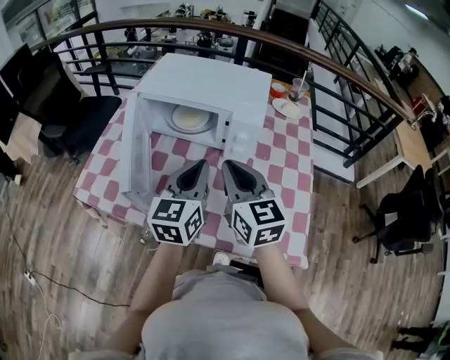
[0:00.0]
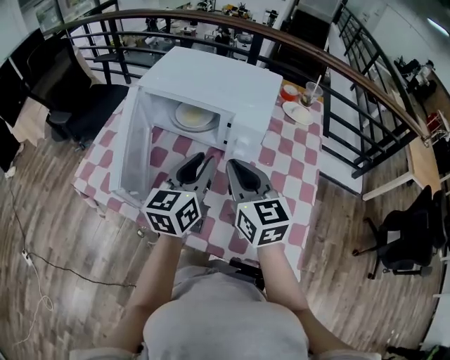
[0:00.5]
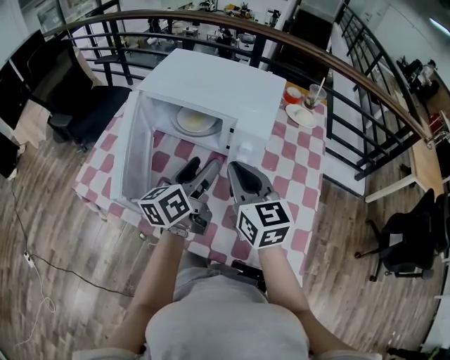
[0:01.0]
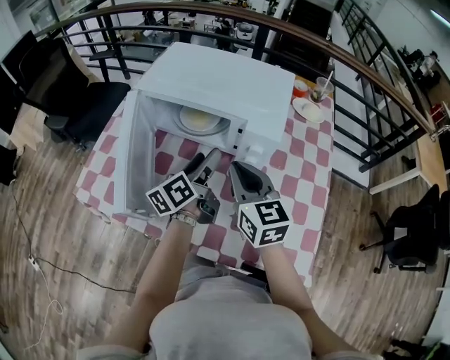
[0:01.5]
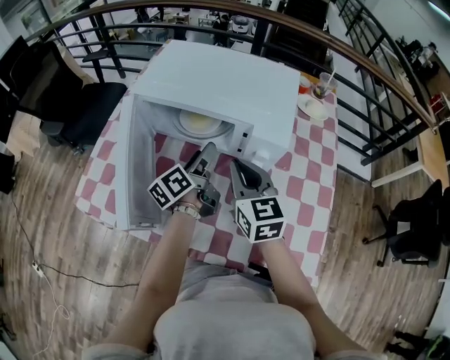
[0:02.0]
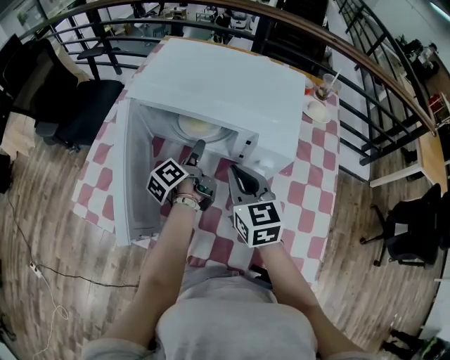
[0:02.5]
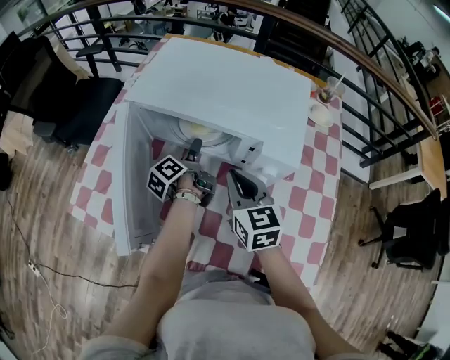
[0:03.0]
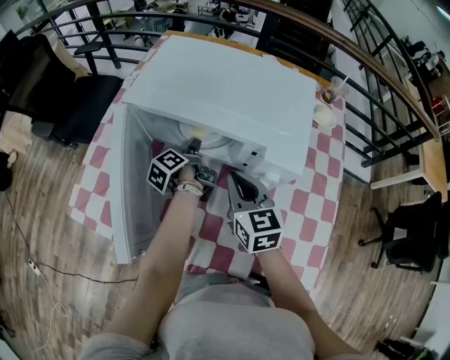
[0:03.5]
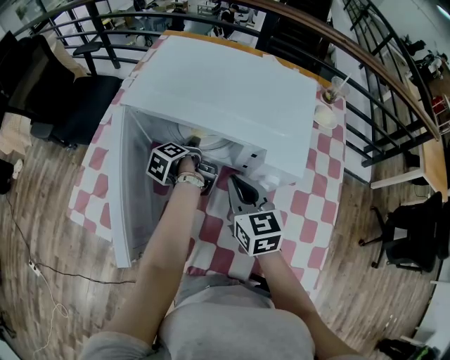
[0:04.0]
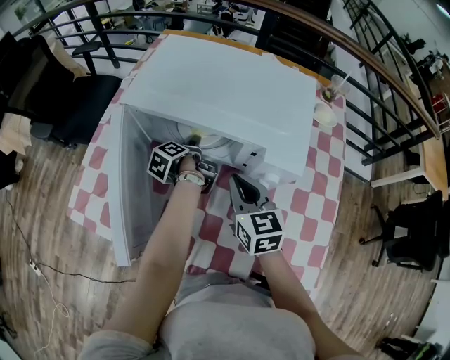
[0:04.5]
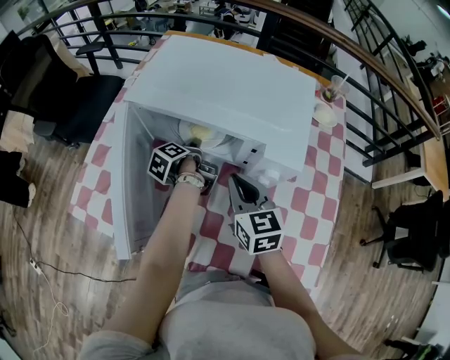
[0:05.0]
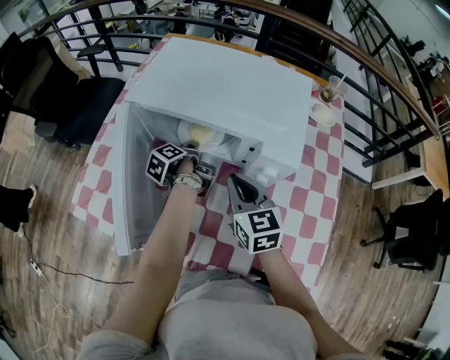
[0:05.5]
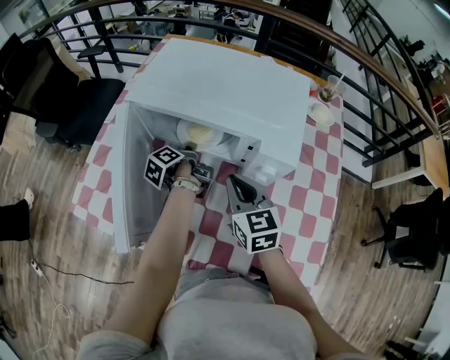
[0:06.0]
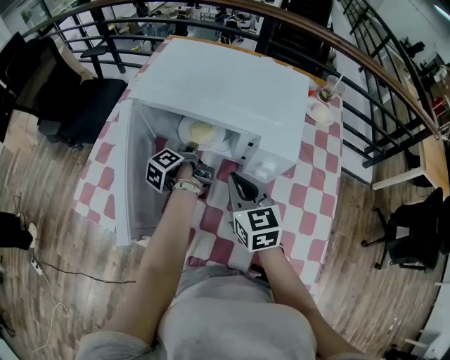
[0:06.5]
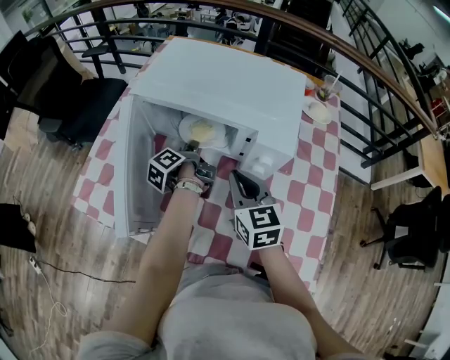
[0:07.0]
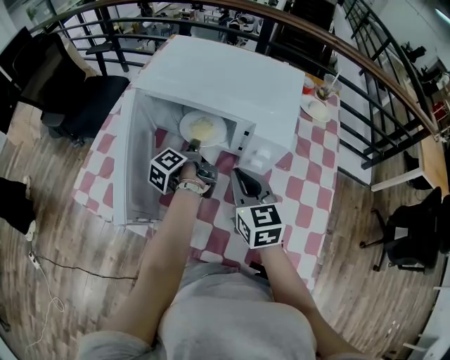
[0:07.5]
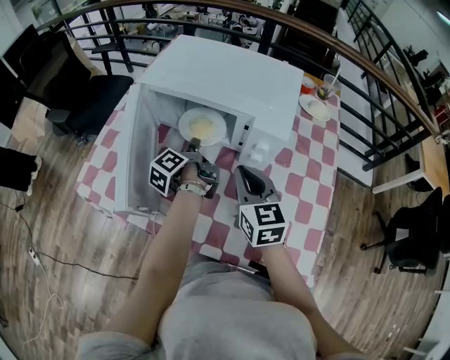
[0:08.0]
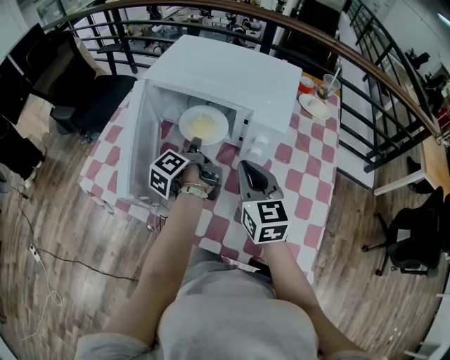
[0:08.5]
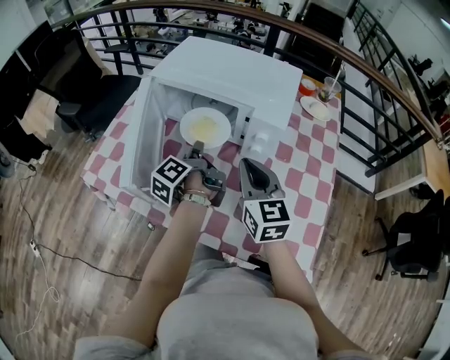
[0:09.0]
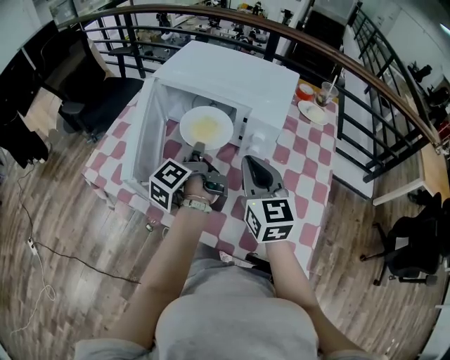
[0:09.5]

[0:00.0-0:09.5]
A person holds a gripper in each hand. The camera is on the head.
0:00.0 to 0:02.0: Both grippers travel together forward and downward, some 20 cm. The left gripper rotates around the line of its fingers by roughly 50 degrees, counterclockwise from behind, and opens up.
0:02.0 to 0:04.0: The left gripper travels downward and forward by some 15 cm, and tilts its fingers approximately 30 degrees downward, while the right gripper heads downward, covering roughly 5 cm.
0:04.0 to 0:05.5: The left gripper closes.
0:05.5 to 0:07.5: The left gripper changes place by roughly 5 cm.
0:07.5 to 0:09.5: The left gripper moves backward and upward, roughly 15 cm. Meanwhile the right gripper heads upward and backward, covering about 10 cm.

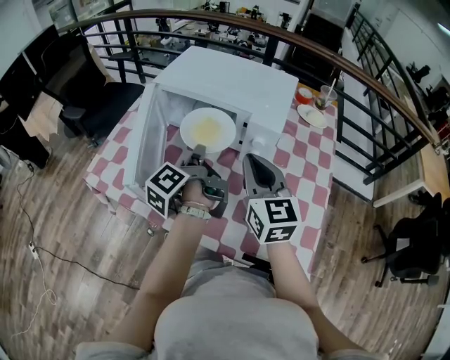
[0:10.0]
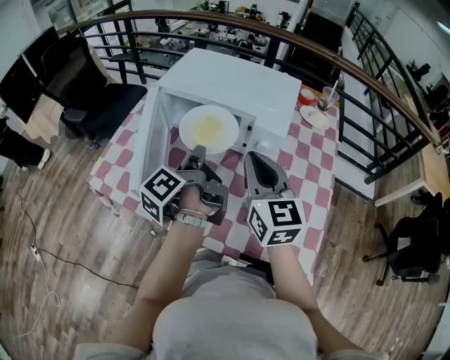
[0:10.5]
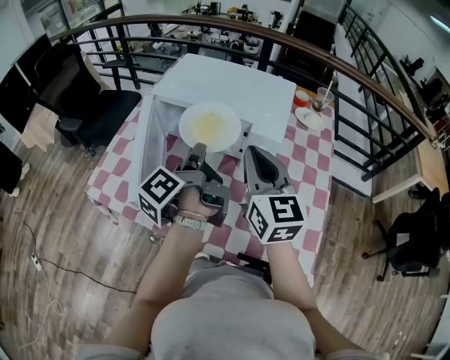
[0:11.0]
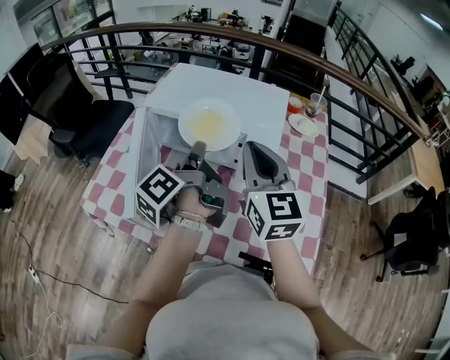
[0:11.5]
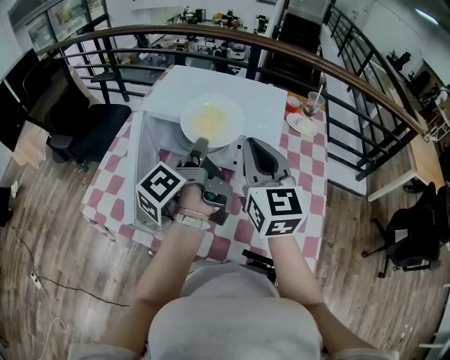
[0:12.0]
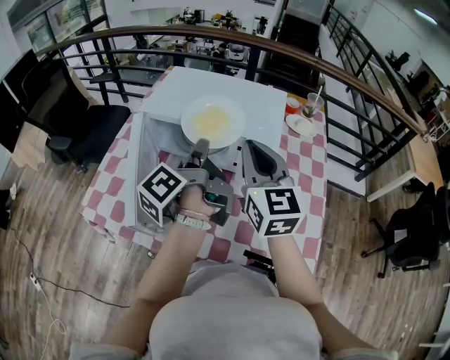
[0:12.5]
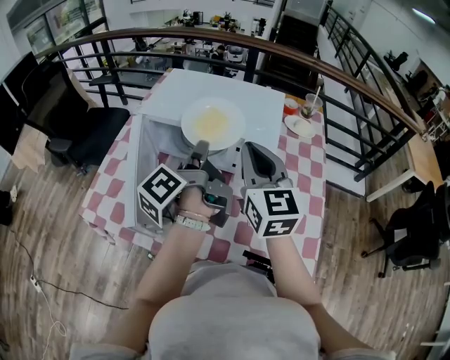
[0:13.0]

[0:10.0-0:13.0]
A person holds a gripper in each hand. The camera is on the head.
0:10.0 to 0:11.5: The right gripper heads upward and forward, covering about 10 cm; the left gripper moves upward, roughly 10 cm.
0:11.5 to 0:13.0: There are only small adjustments of the grippers.

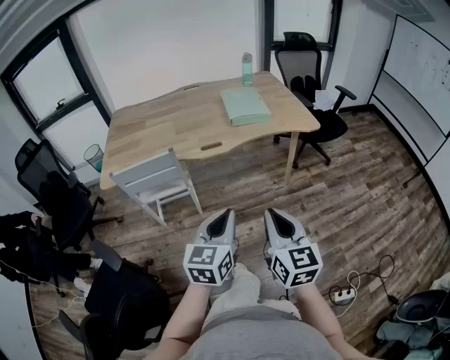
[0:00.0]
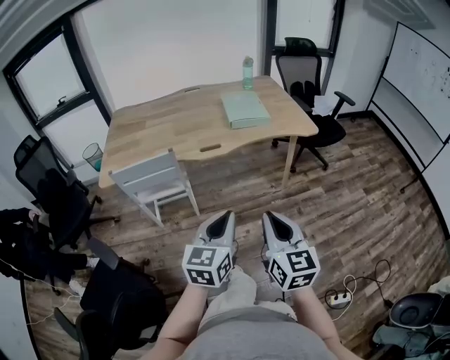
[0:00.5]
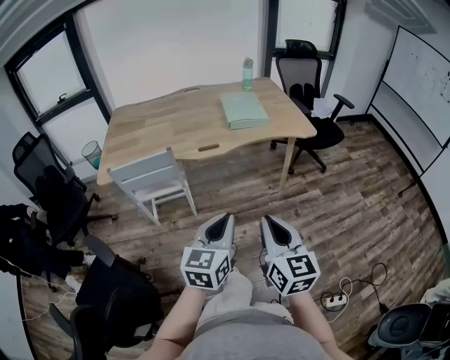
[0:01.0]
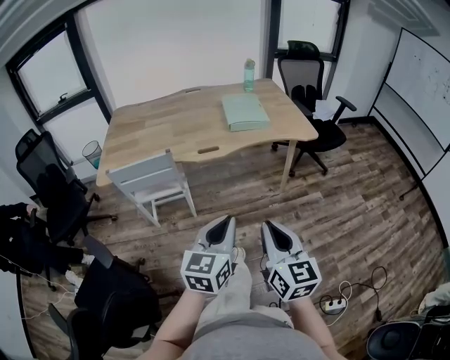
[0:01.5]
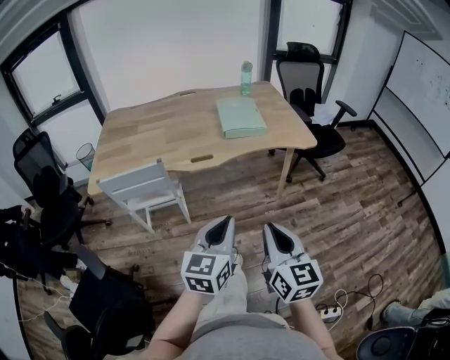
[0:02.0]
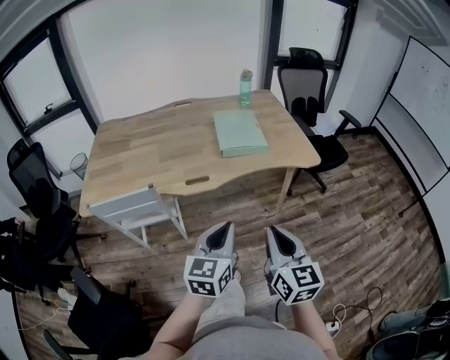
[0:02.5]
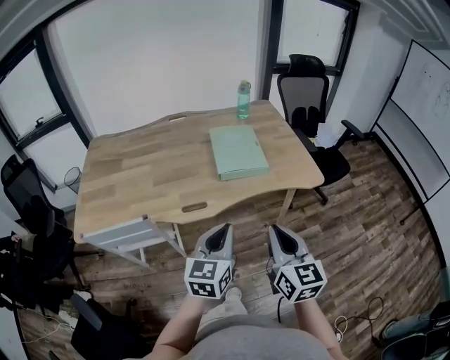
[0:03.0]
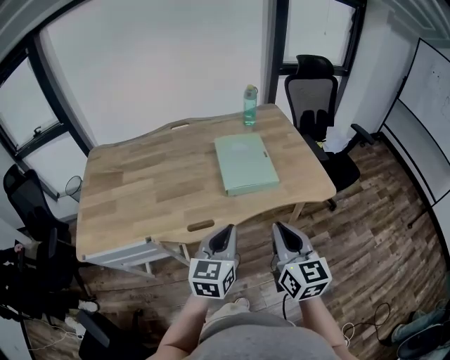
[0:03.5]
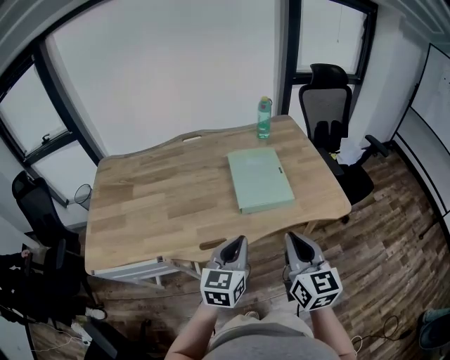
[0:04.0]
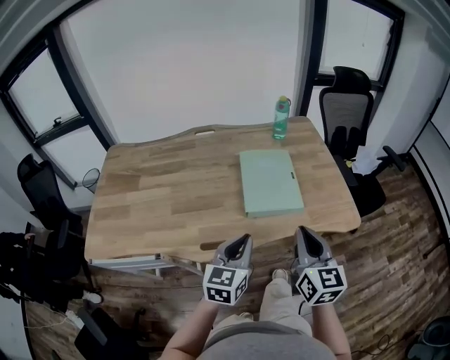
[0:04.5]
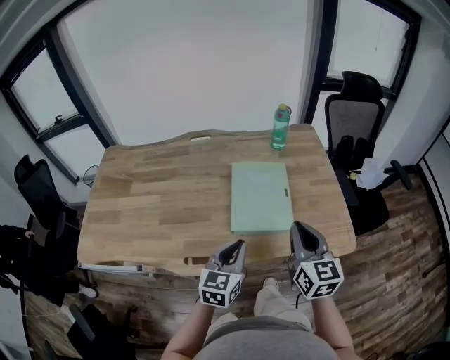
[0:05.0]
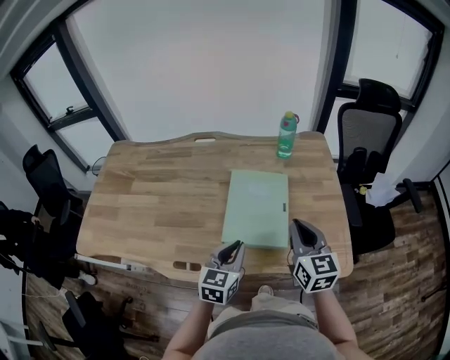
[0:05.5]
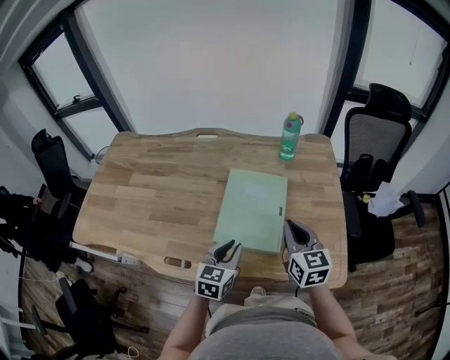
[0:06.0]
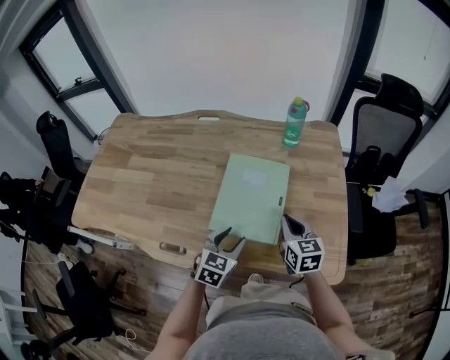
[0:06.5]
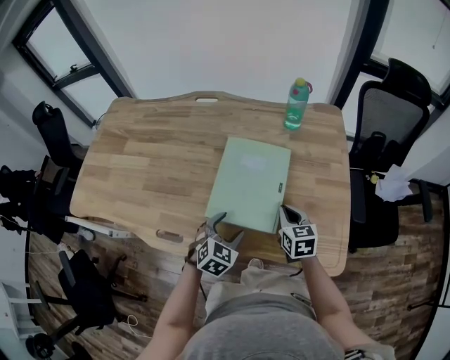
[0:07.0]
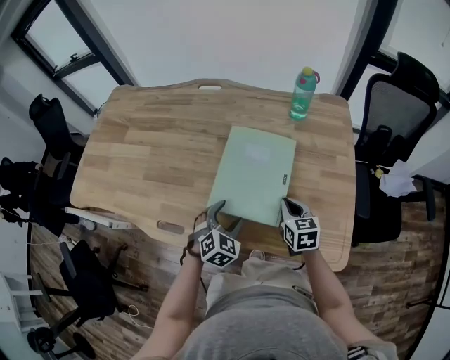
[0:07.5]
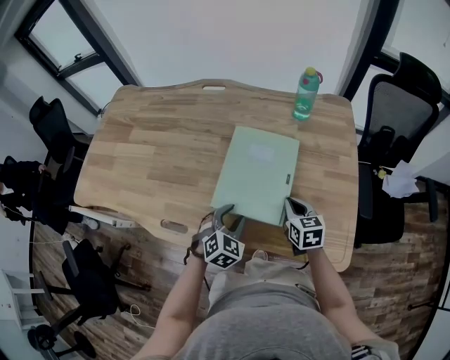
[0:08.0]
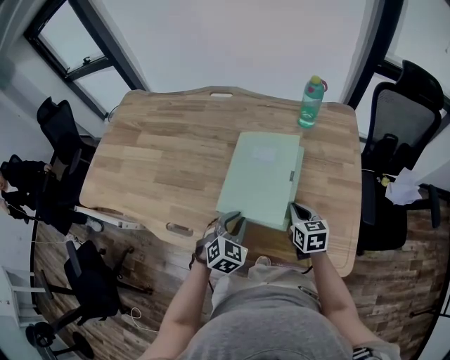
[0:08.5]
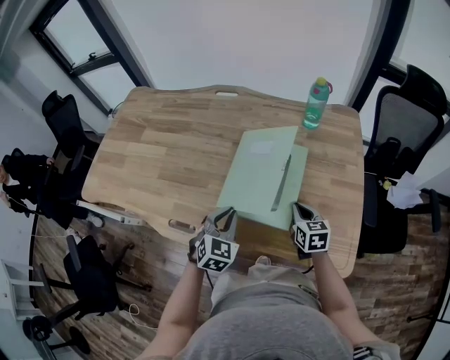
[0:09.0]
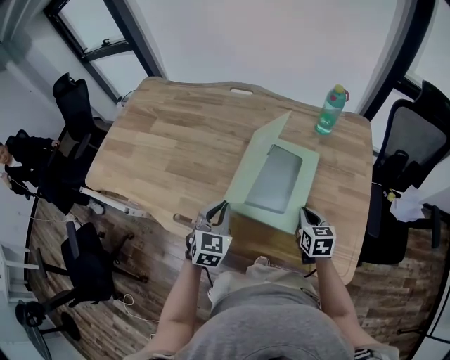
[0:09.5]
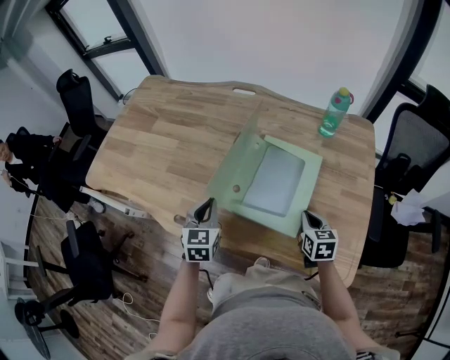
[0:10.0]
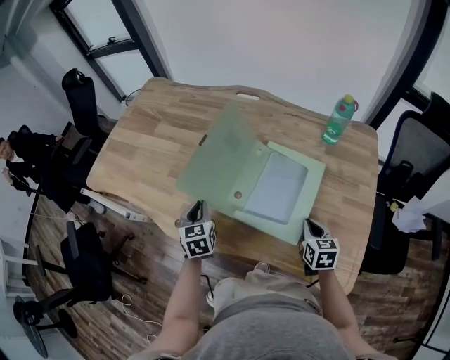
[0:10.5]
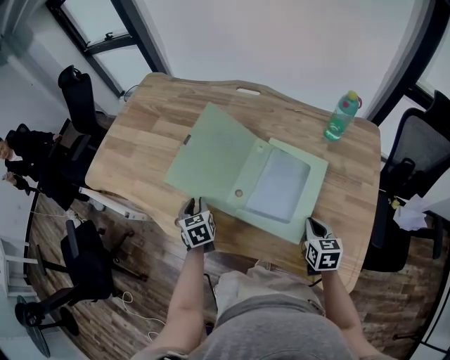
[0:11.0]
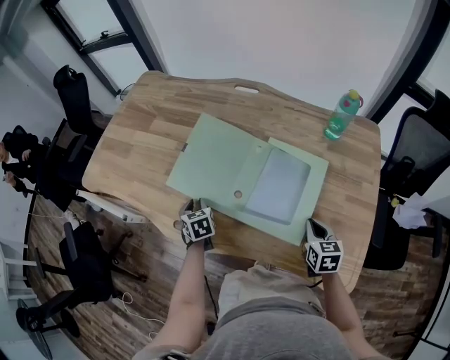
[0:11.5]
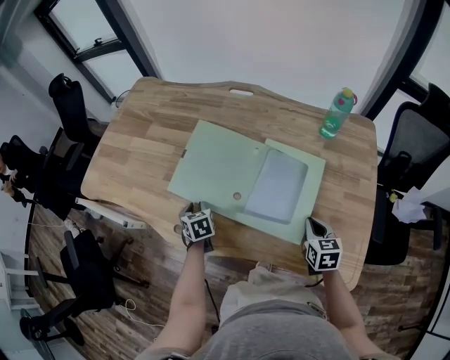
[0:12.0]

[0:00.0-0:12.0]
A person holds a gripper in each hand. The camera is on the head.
0:00.0 to 0:02.0: The left gripper changes place by roughly 5 cm. Meanwhile the right gripper changes place by some 5 cm.
0:02.0 to 0:04.0: The two grippers go approximately 40 cm forward.
0:04.0 to 0:06.0: The right gripper heads forward and to the right, covering about 35 cm, and swivels about 20 degrees. The left gripper moves forward, downward and to the right, roughly 25 cm.
0:06.0 to 0:08.0: The right gripper shifts approximately 15 cm downward, and changes its angle by some 20 degrees, while the left gripper shifts roughly 10 cm downward, rotates roughly 40 degrees, and opens.
0:08.0 to 0:10.0: The left gripper shifts some 15 cm to the left and upward, rotates approximately 40 degrees, and closes its fingers.
0:10.0 to 0:12.0: The left gripper shifts approximately 20 cm downward, to the left and forward, changes its angle by some 30 degrees, and opens its fingers.

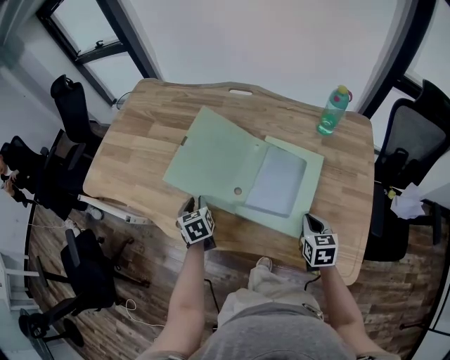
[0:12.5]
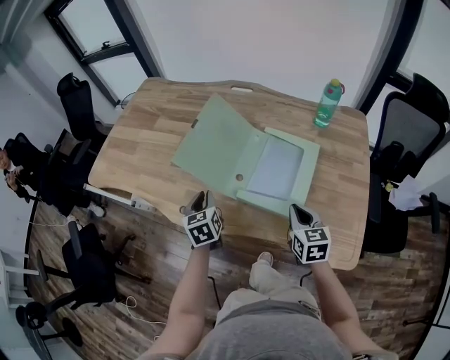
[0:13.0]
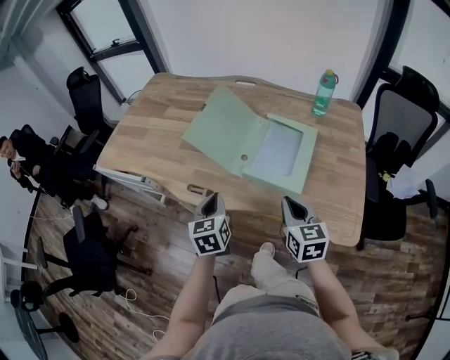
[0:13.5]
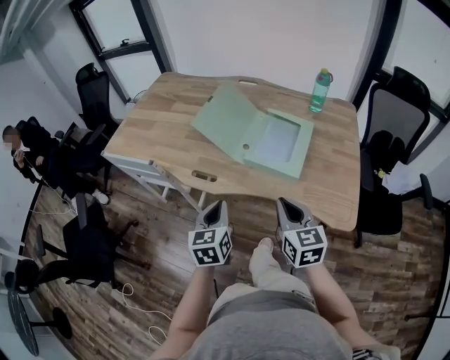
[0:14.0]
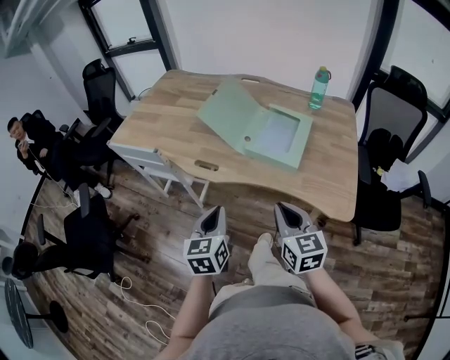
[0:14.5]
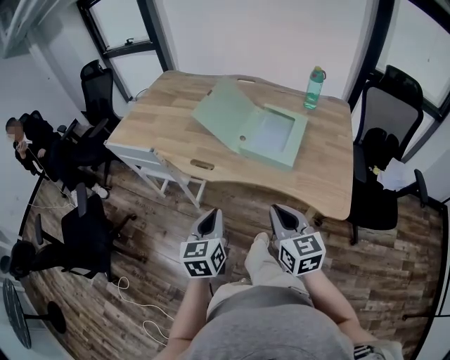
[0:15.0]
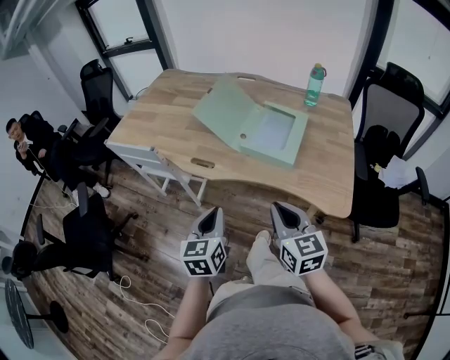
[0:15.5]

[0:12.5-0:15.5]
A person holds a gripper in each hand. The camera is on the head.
0:12.5 to 0:14.0: The right gripper travels backward, to the left and upward by some 30 cm, and rotates about 20 degrees. The left gripper heads backward and upward, covering approximately 35 cm, turns by about 20 degrees, and closes.
0:14.0 to 0:15.5: Both grippers travel together backward, about 10 cm.
